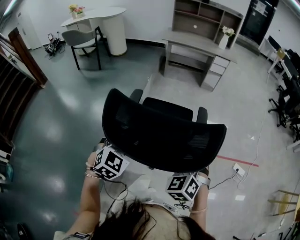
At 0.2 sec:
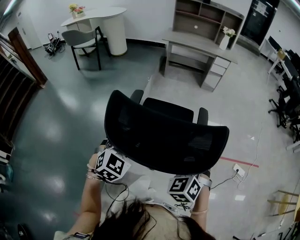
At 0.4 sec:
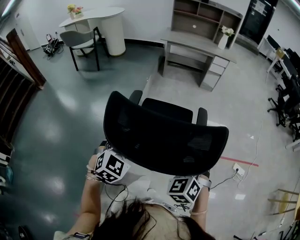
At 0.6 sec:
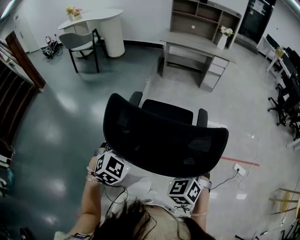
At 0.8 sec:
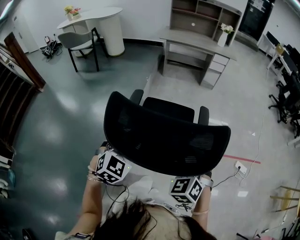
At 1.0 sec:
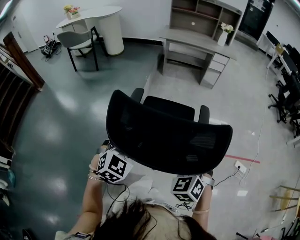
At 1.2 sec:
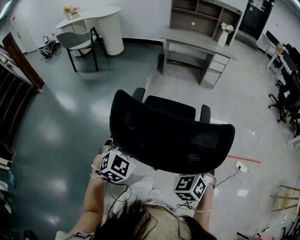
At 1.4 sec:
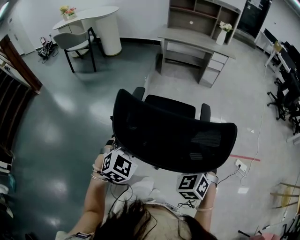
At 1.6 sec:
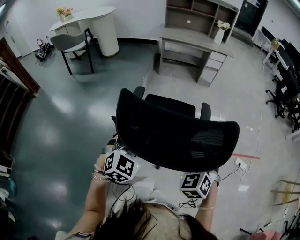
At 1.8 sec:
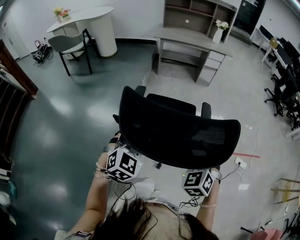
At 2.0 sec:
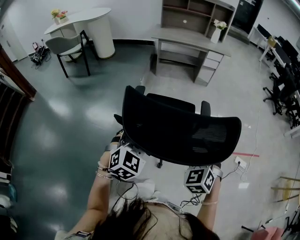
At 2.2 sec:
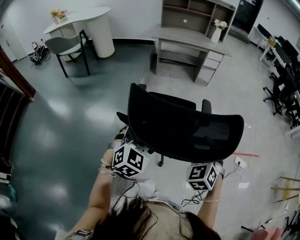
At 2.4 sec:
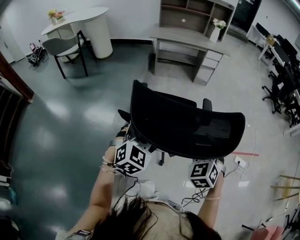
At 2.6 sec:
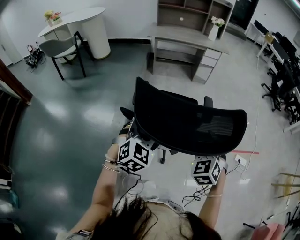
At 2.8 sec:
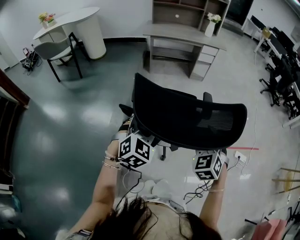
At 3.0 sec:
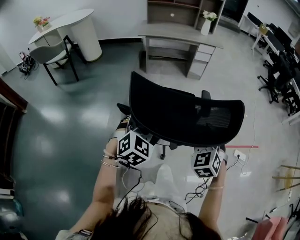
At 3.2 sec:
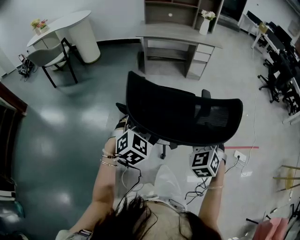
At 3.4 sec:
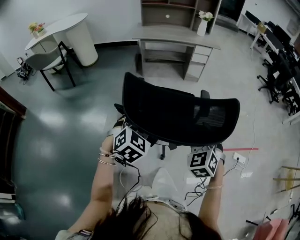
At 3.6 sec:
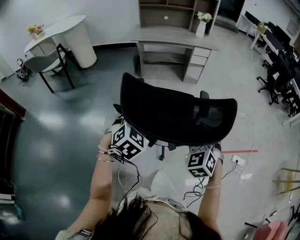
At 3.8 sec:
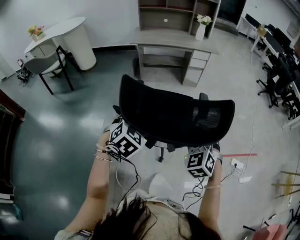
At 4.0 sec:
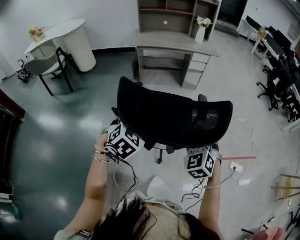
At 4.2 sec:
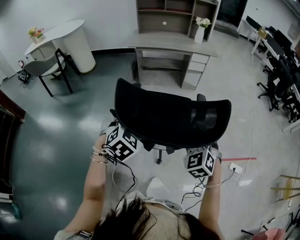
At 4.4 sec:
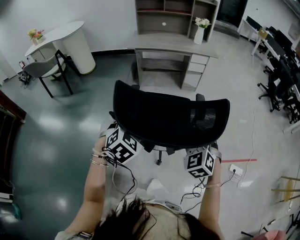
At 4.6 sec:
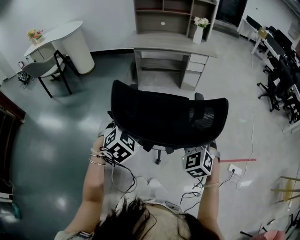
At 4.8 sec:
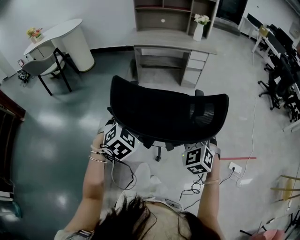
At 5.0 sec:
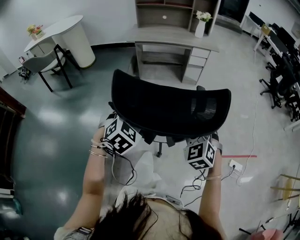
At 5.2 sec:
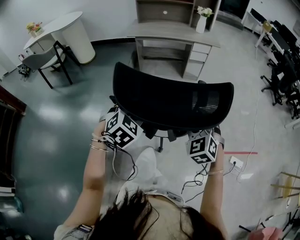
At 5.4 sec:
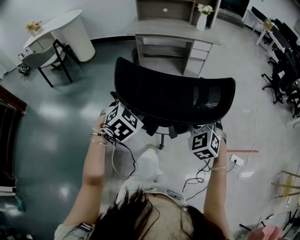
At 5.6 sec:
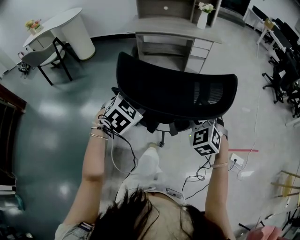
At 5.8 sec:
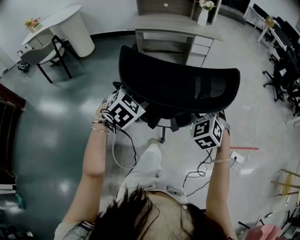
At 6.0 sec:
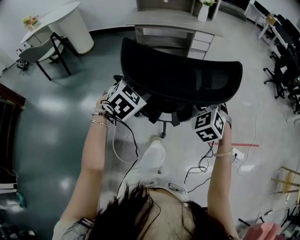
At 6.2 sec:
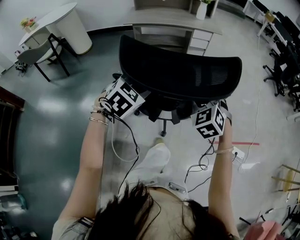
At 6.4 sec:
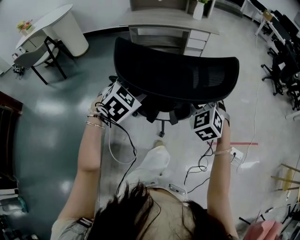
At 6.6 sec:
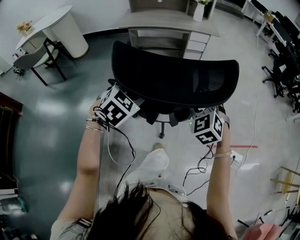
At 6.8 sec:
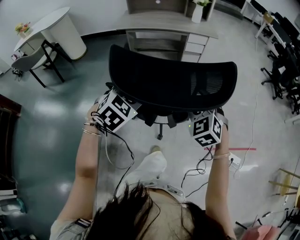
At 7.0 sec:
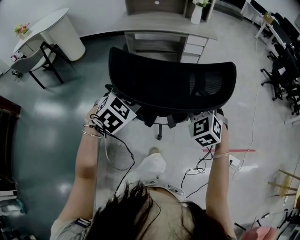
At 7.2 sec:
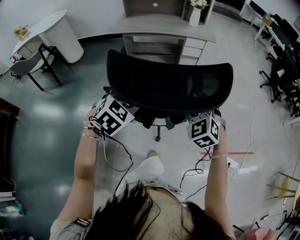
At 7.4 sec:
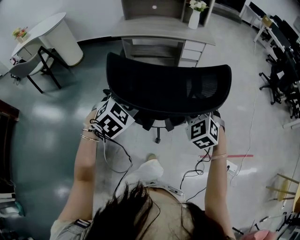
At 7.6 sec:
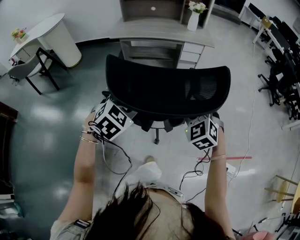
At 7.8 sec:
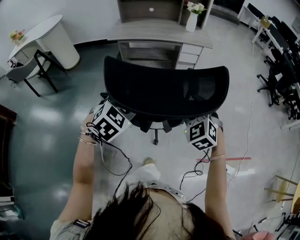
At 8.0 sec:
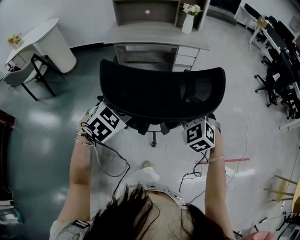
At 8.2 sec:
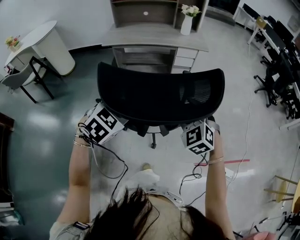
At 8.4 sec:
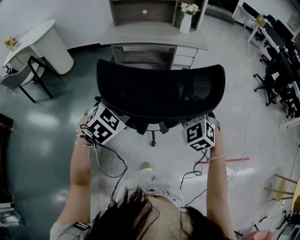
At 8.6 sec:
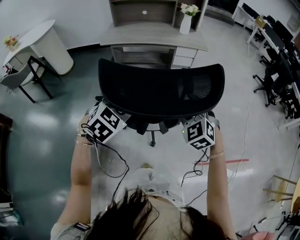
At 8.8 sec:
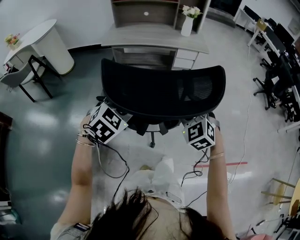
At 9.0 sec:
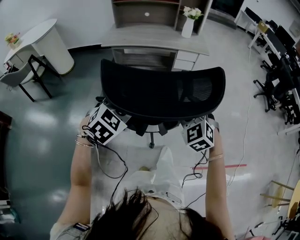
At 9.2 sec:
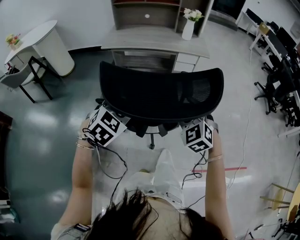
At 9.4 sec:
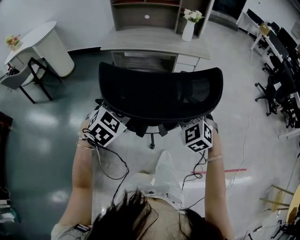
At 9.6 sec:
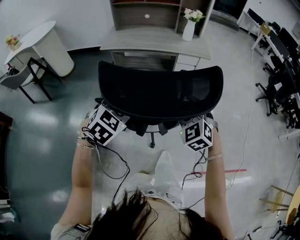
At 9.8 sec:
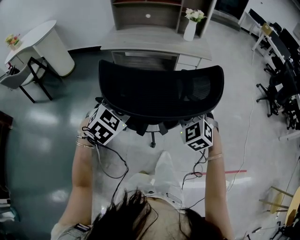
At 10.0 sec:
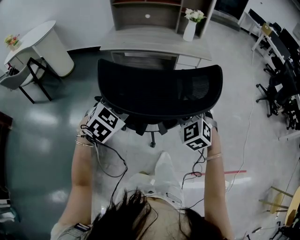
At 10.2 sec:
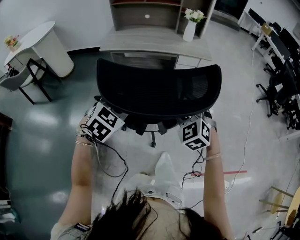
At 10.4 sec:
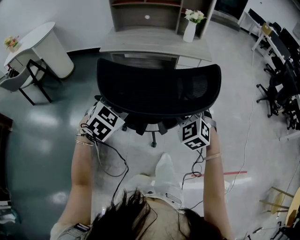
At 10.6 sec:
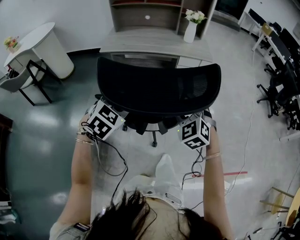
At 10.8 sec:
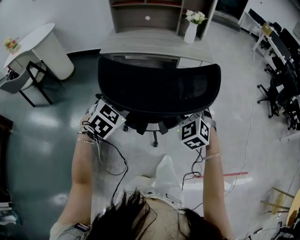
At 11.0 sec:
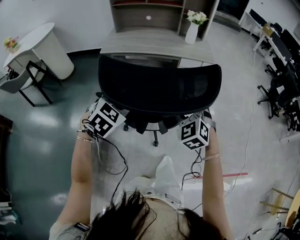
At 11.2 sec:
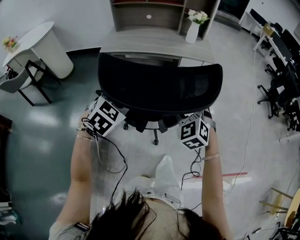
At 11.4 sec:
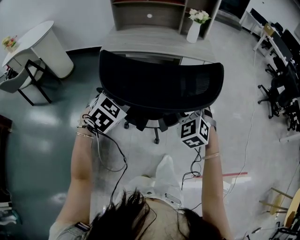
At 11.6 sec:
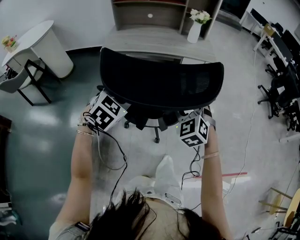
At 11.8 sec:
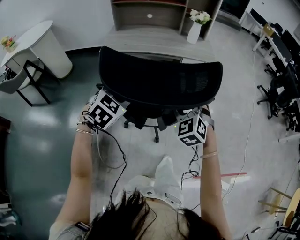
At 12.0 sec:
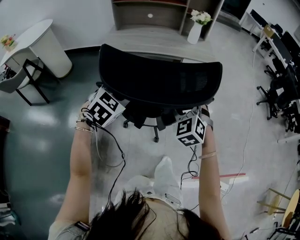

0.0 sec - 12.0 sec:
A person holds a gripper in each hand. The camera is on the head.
0.0 sec - 1.6 sec: Both grippers travel together forward, approximately 5 cm.
1.6 sec - 3.0 sec: Both grippers travel together forward, some 15 cm.
3.0 sec - 4.4 sec: The grippers both shift forward by approximately 10 cm.
4.4 sec - 6.0 sec: The grippers both shift forward by some 10 cm.
6.0 sec - 7.6 sec: The two grippers go some 10 cm forward.
7.6 sec - 9.0 sec: The grippers both shift forward by approximately 10 cm.
9.0 sec - 10.4 sec: The two grippers go about 10 cm forward.
10.4 sec - 12.0 sec: The grippers both shift forward by approximately 10 cm.

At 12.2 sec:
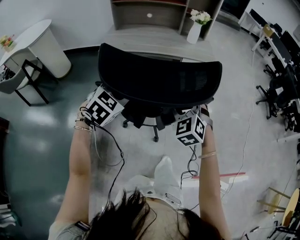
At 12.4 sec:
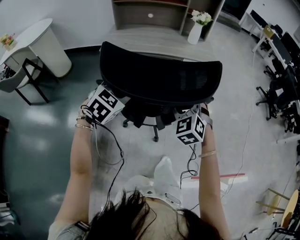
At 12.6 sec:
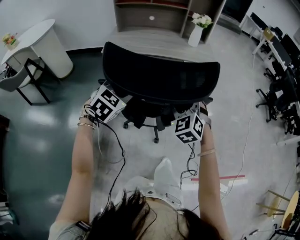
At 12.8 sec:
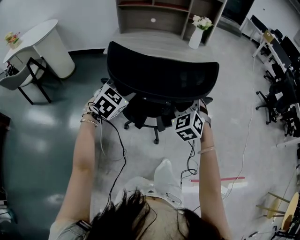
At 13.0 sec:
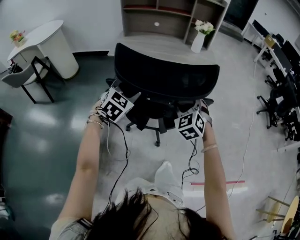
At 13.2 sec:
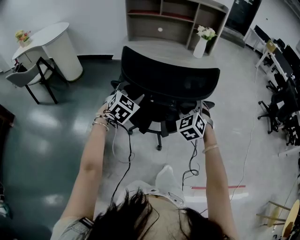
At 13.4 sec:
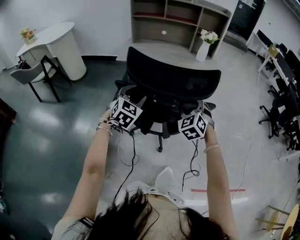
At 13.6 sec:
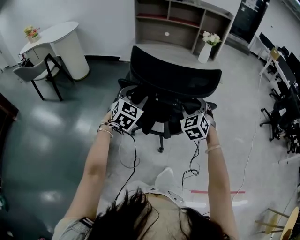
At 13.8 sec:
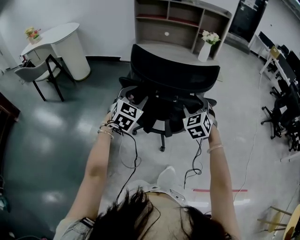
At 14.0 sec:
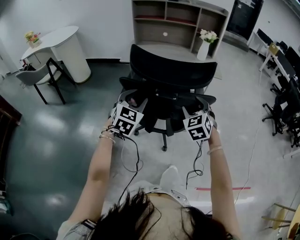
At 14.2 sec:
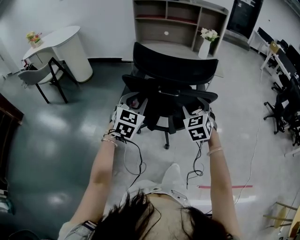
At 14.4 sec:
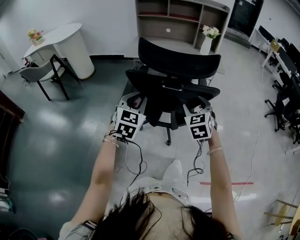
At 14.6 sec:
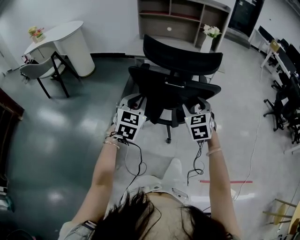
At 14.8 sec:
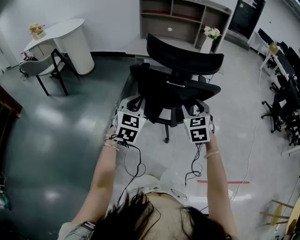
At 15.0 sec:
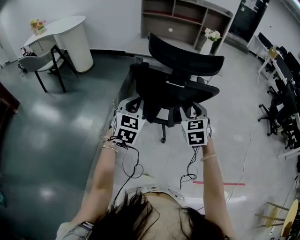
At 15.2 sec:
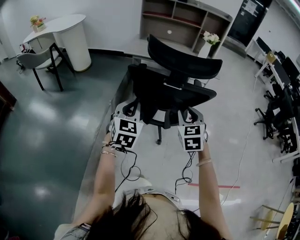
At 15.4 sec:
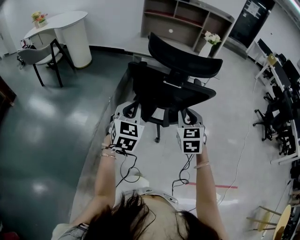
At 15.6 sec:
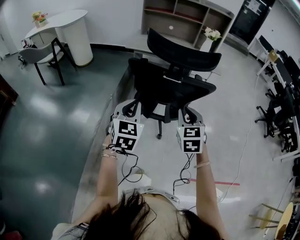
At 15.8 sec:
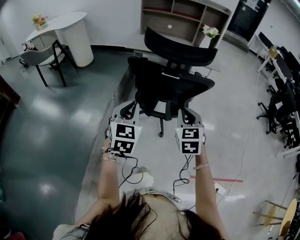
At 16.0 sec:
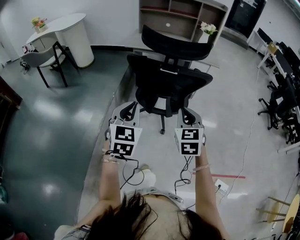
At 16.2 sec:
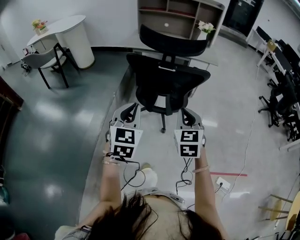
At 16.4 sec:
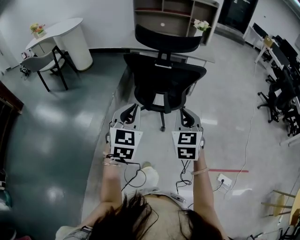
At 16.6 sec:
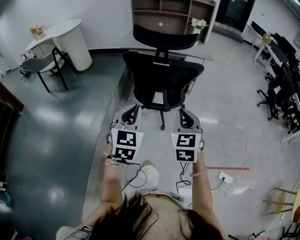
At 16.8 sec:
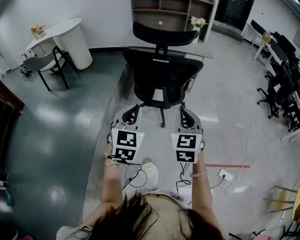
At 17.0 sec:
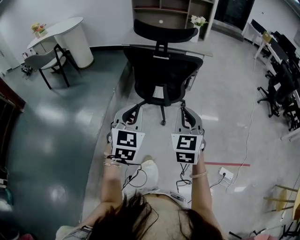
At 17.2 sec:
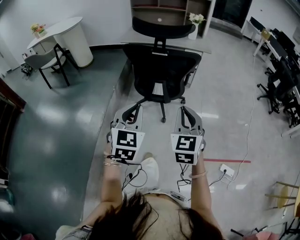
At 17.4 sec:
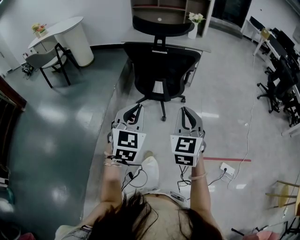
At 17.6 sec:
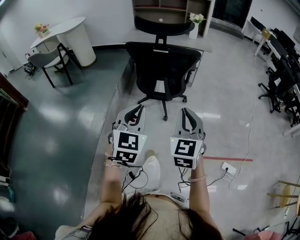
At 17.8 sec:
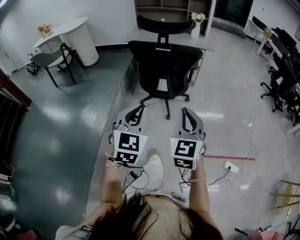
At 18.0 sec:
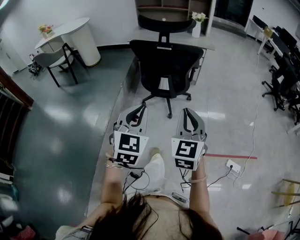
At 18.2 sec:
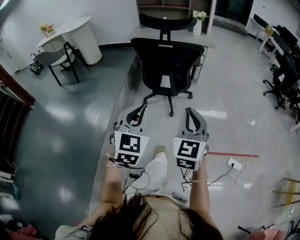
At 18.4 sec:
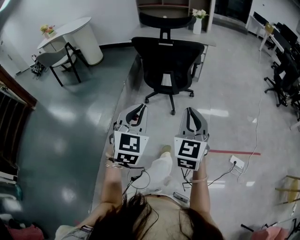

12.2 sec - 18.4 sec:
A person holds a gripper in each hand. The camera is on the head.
12.2 sec - 13.8 sec: The left gripper changes place by some 5 cm, and turns by roughly 20 degrees.
13.8 sec - 15.4 sec: Both grippers travel together backward, roughly 15 cm. The left gripper closes its fingers. Meanwhile the right gripper closes its fingers.
15.4 sec - 16.8 sec: The two grippers go approximately 20 cm backward.
16.8 sec - 18.4 sec: Both grippers move backward, about 15 cm.

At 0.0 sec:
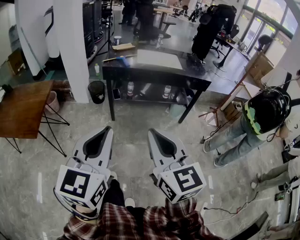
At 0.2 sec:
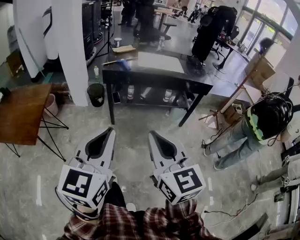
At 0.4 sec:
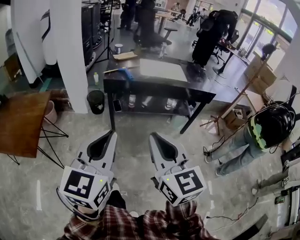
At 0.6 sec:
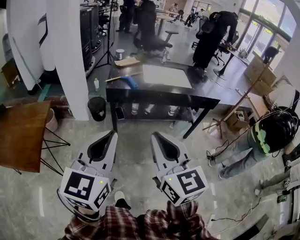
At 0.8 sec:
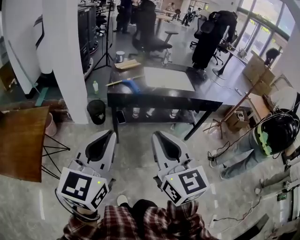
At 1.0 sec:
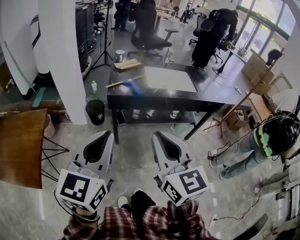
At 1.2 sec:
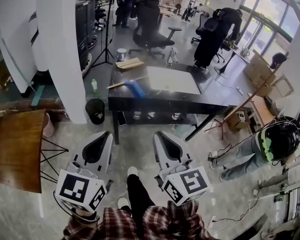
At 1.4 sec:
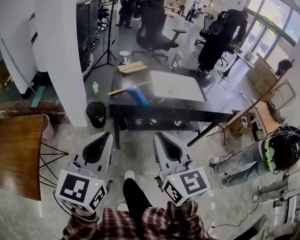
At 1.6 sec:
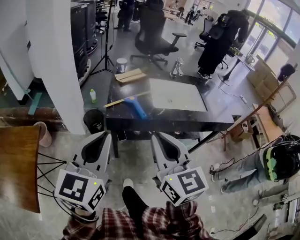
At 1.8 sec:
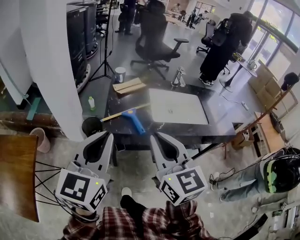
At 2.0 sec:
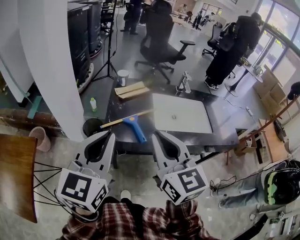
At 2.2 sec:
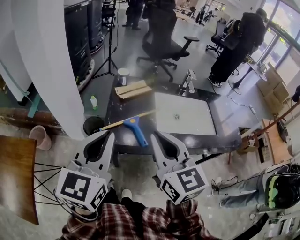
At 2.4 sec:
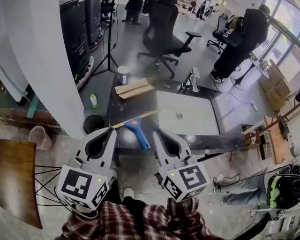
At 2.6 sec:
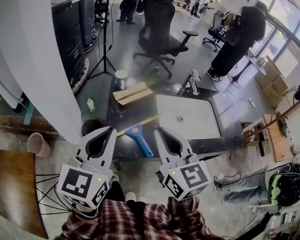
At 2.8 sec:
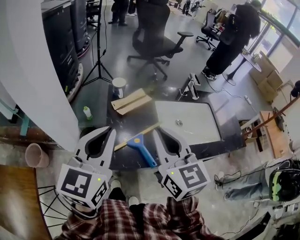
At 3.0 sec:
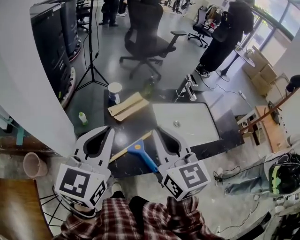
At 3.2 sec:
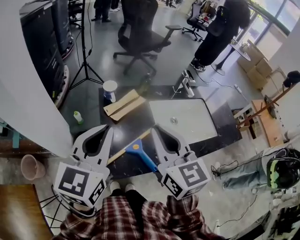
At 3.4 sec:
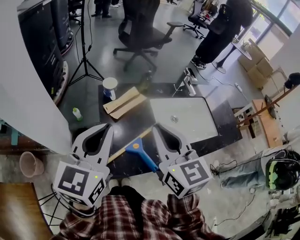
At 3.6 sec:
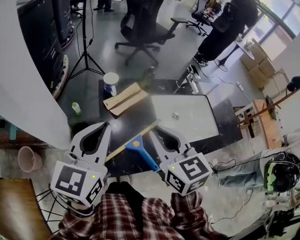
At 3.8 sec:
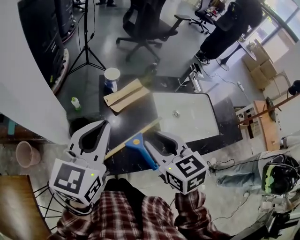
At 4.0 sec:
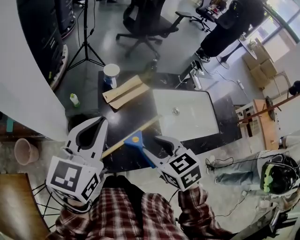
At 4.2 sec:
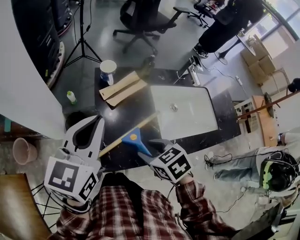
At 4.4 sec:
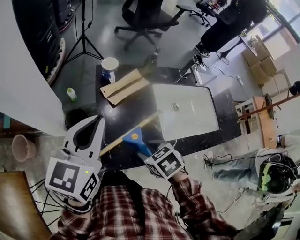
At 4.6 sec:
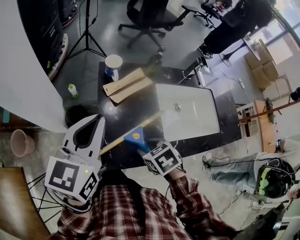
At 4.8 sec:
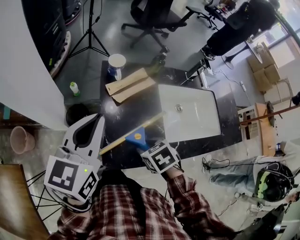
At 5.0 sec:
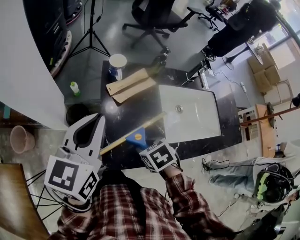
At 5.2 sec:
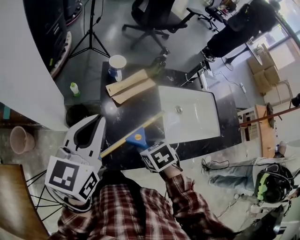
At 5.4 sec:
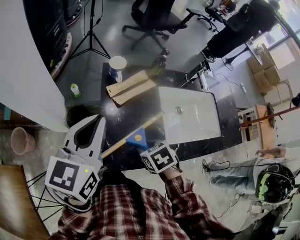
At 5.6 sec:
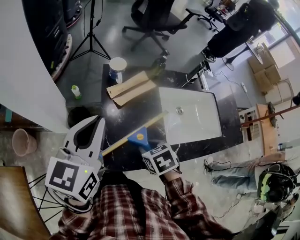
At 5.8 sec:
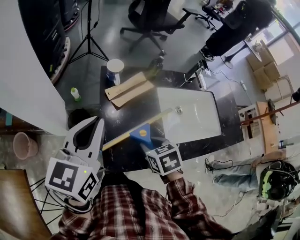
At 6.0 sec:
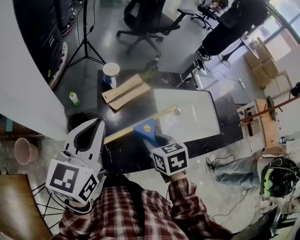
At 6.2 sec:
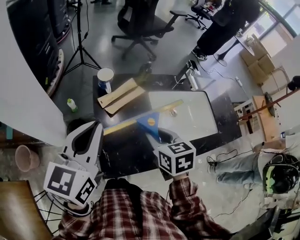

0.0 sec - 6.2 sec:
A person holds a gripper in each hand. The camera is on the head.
0.0 sec - 1.6 sec: The two grippers travel together, forward, approximately 50 cm.
1.6 sec - 3.2 sec: The two grippers go approximately 35 cm forward.
3.2 sec - 4.6 sec: The right gripper travels downward by some 25 cm, tips its fingers downward by about 60 degrees, and opens up. The left gripper heads downward, covering approximately 5 cm.
4.6 sec - 6.2 sec: The right gripper moves upward and forward, some 10 cm, and swivels some 30 degrees.
